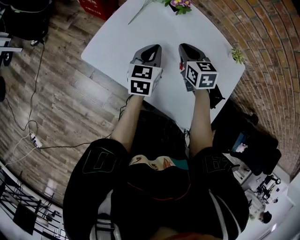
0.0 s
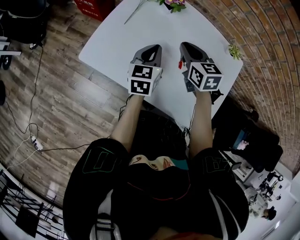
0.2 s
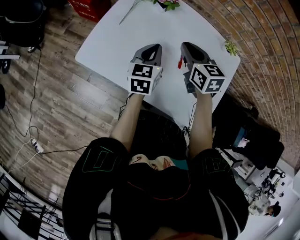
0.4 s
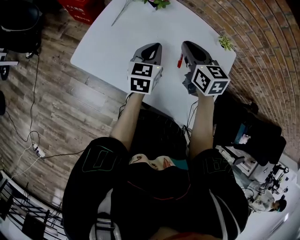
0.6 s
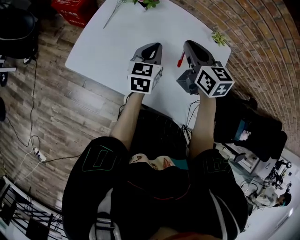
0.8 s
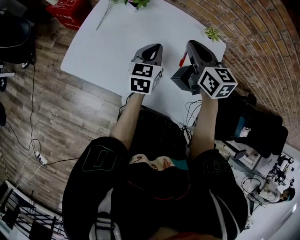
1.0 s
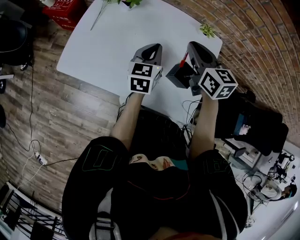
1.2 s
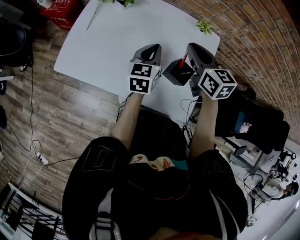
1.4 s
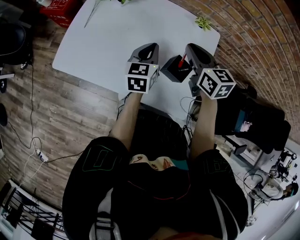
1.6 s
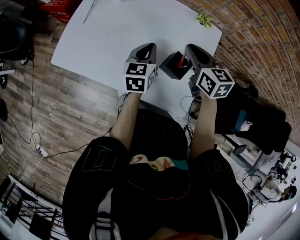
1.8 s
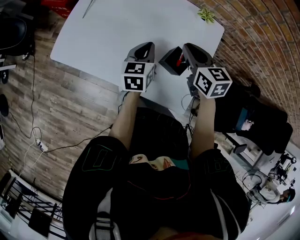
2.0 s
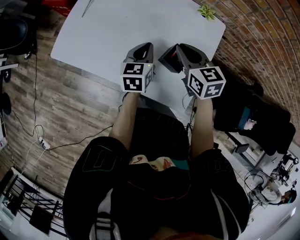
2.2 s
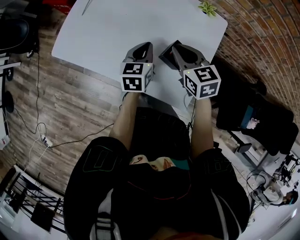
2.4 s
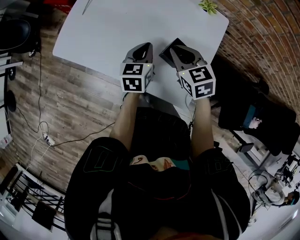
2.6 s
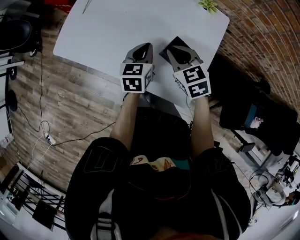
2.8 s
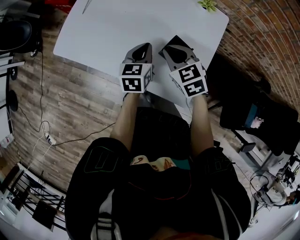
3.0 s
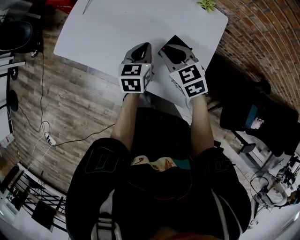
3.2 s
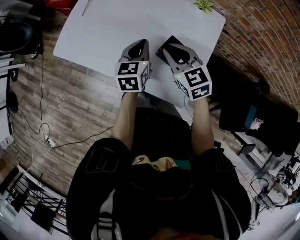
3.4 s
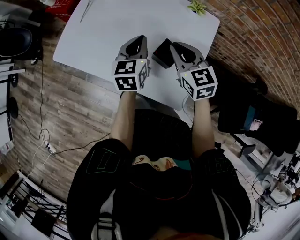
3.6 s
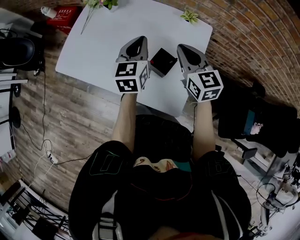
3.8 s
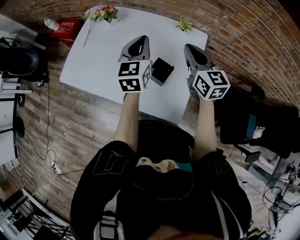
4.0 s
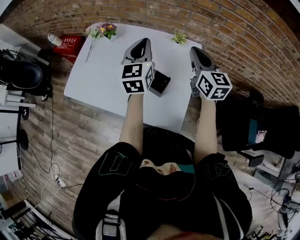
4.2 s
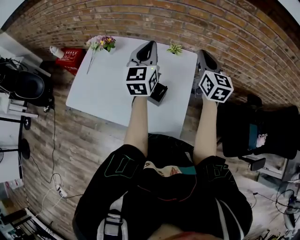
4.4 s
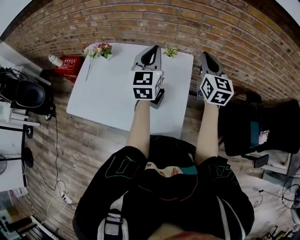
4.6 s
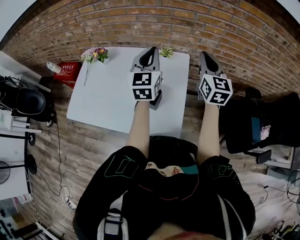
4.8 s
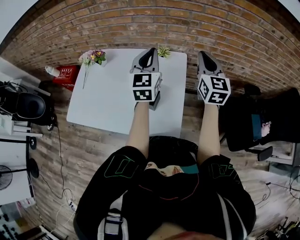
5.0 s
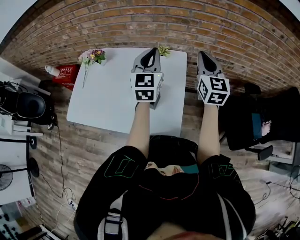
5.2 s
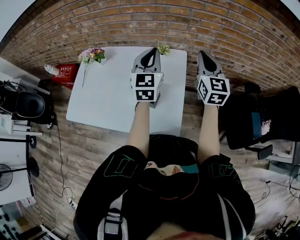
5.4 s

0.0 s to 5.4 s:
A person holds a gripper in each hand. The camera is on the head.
0.0 to 1.4 s: The left gripper heads to the right, covering roughly 20 cm. The right gripper moves to the right, upward and backward, about 25 cm.
1.4 to 2.8 s: The left gripper is displaced backward and downward by approximately 10 cm. The right gripper moves downward and backward, about 15 cm, and rotates approximately 30 degrees.
2.8 to 4.0 s: The left gripper moves upward, about 15 cm, and turns by about 20 degrees. The right gripper travels upward and to the right by approximately 20 cm, and tilts its fingers roughly 30 degrees upward.
4.0 to 5.4 s: Both grippers move to the right and upward, roughly 15 cm. The right gripper rotates some 30 degrees; the left gripper turns by some 20 degrees.

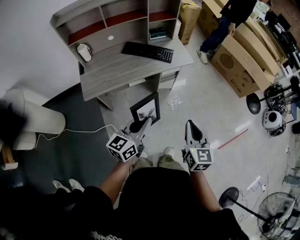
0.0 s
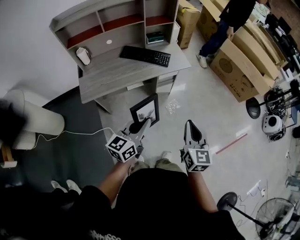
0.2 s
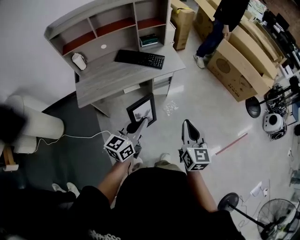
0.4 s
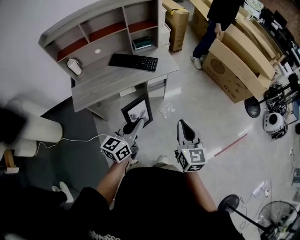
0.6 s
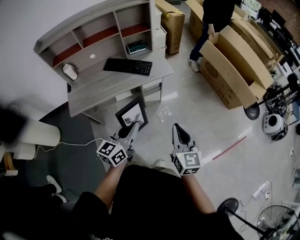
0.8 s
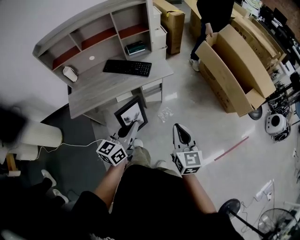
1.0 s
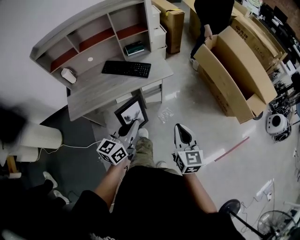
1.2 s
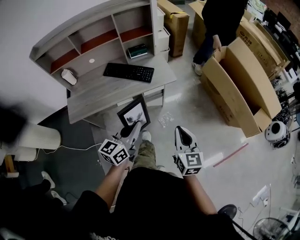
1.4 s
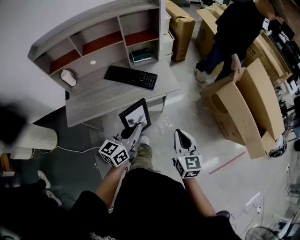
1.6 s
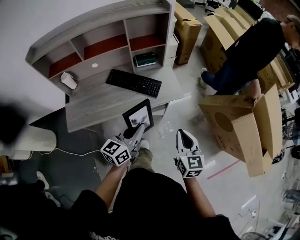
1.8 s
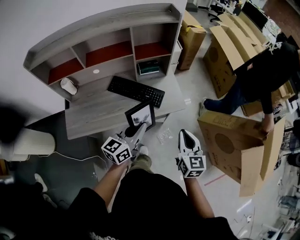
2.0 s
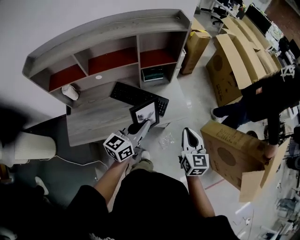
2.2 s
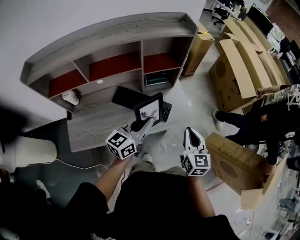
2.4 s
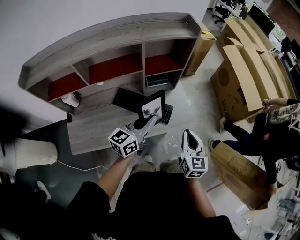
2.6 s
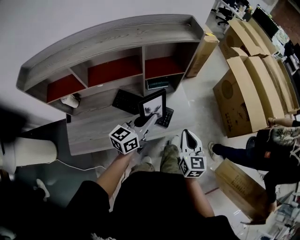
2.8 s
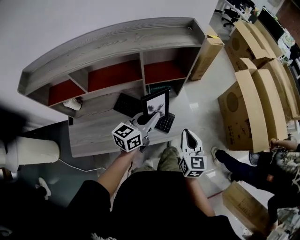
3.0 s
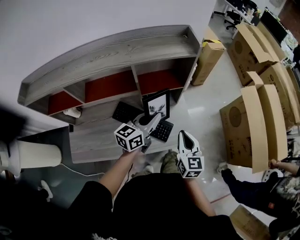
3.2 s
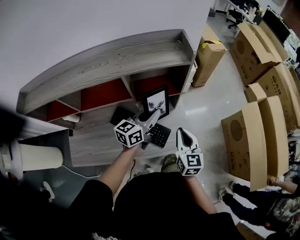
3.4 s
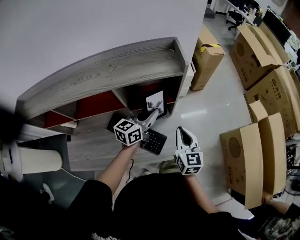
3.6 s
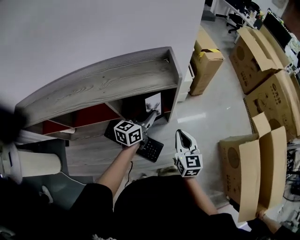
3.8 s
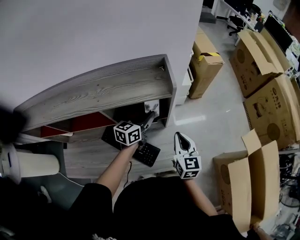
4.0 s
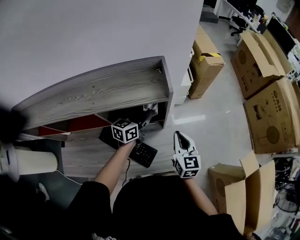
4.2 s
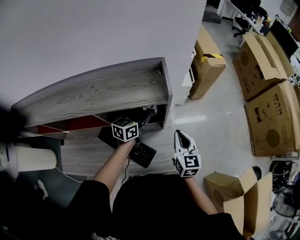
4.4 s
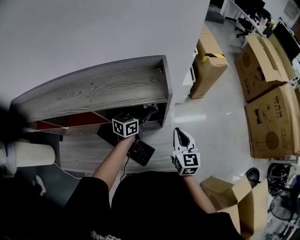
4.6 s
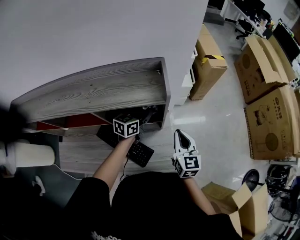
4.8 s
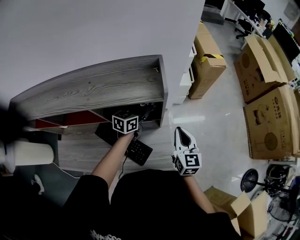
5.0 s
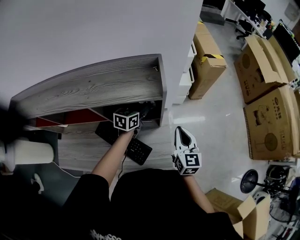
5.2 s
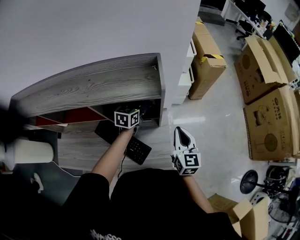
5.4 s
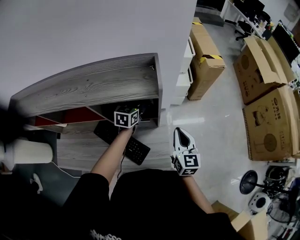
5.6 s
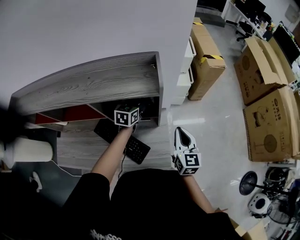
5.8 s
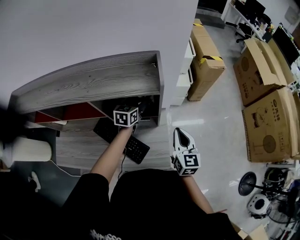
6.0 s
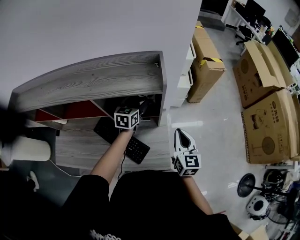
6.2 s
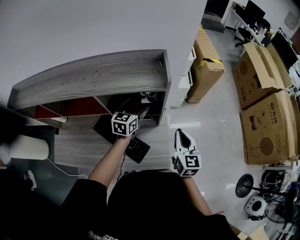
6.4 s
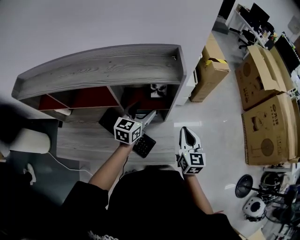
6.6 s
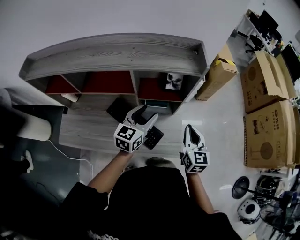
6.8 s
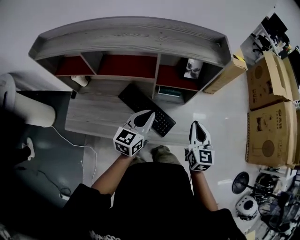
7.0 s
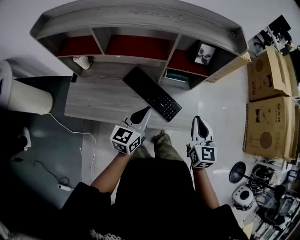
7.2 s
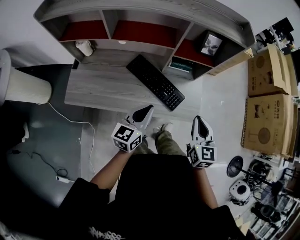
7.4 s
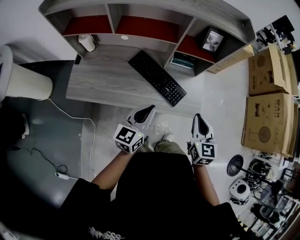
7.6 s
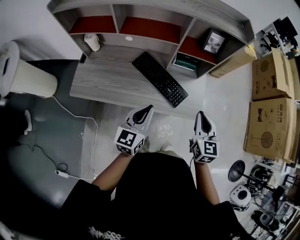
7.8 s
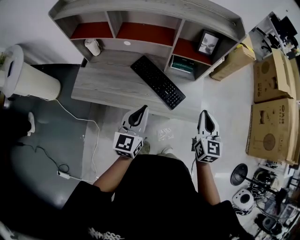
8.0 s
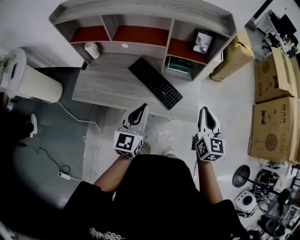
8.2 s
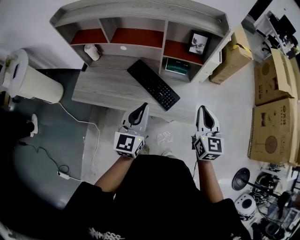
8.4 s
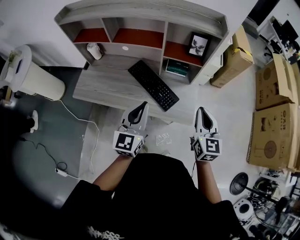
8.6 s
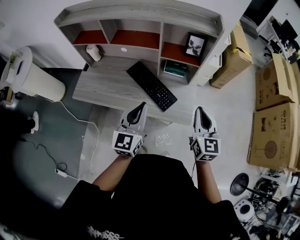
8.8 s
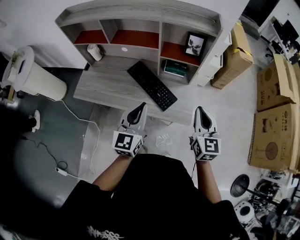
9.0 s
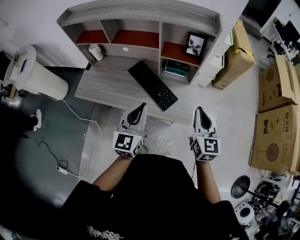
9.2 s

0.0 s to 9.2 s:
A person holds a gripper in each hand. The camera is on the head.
0.0 to 1.6 s: The two grippers go approximately 25 cm forward and to the right.
1.6 to 3.0 s: The left gripper travels forward by roughly 35 cm, while the right gripper travels forward and to the left by some 35 cm.
3.0 to 4.6 s: Both grippers travel together forward, some 30 cm.
4.6 to 6.2 s: The left gripper swivels roughly 20 degrees, and opens.
6.2 to 7.6 s: The right gripper is displaced backward and to the left by about 30 cm; the left gripper goes some 40 cm backward, and closes its fingers.
7.6 to 9.2 s: Both grippers travel together to the right and upward, roughly 15 cm. The left gripper rotates about 30 degrees.

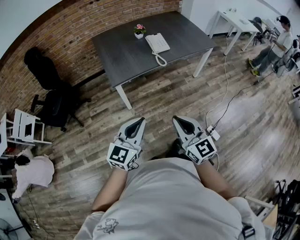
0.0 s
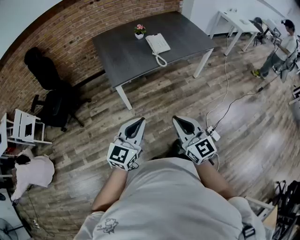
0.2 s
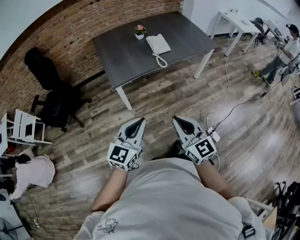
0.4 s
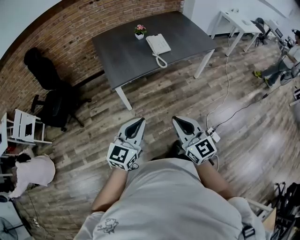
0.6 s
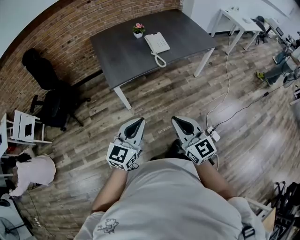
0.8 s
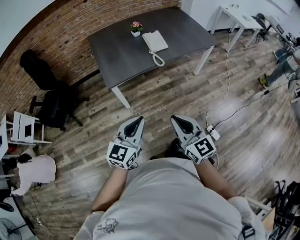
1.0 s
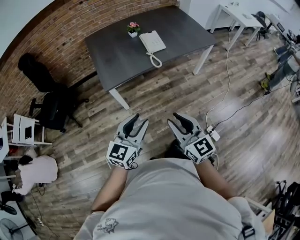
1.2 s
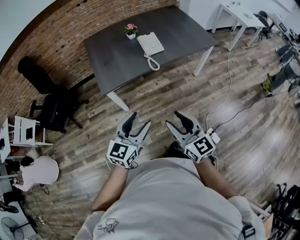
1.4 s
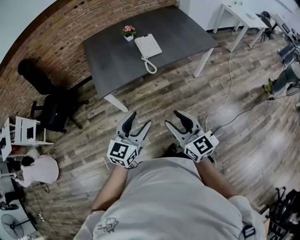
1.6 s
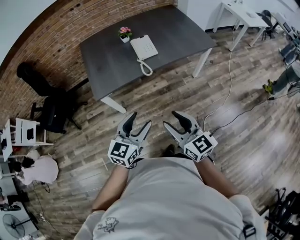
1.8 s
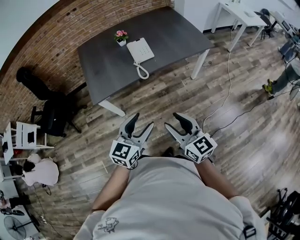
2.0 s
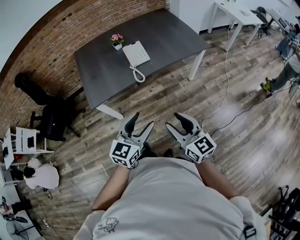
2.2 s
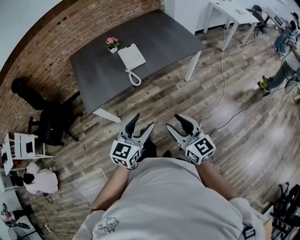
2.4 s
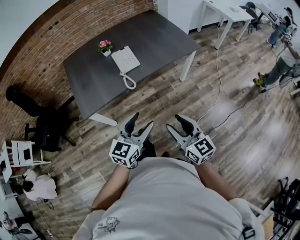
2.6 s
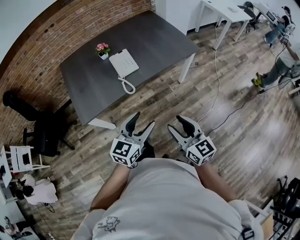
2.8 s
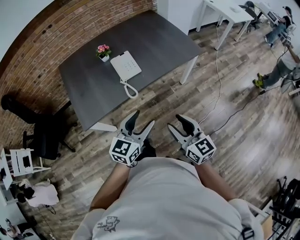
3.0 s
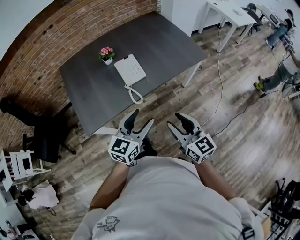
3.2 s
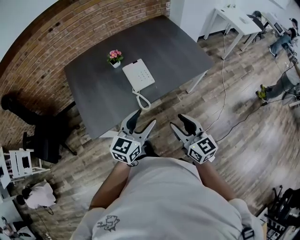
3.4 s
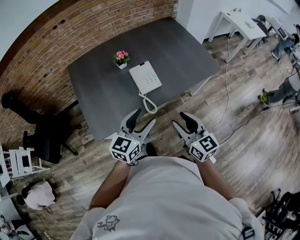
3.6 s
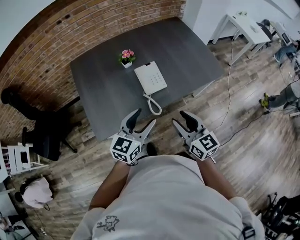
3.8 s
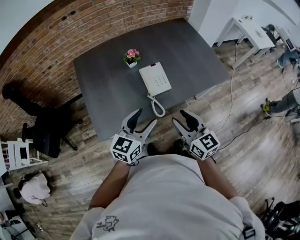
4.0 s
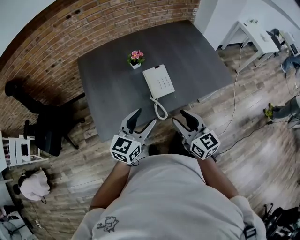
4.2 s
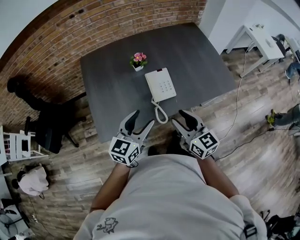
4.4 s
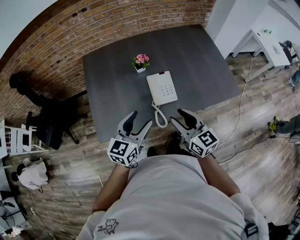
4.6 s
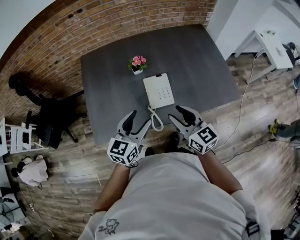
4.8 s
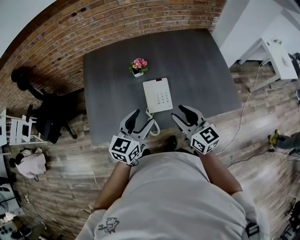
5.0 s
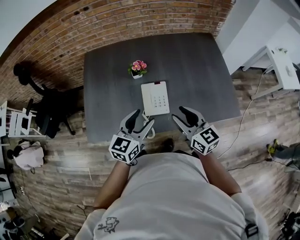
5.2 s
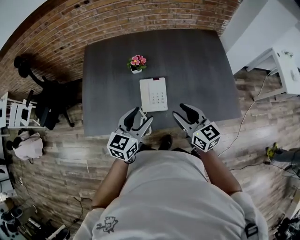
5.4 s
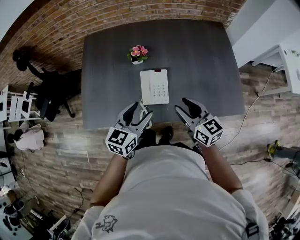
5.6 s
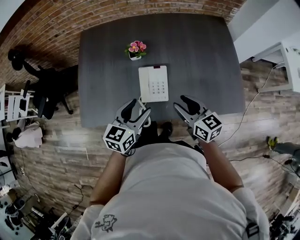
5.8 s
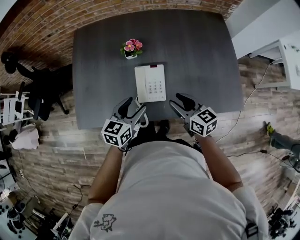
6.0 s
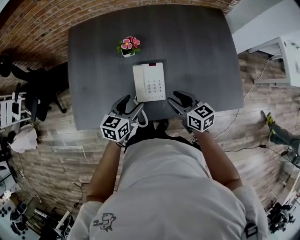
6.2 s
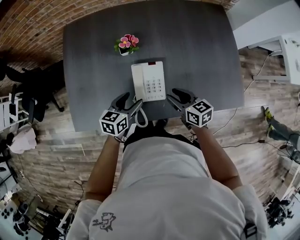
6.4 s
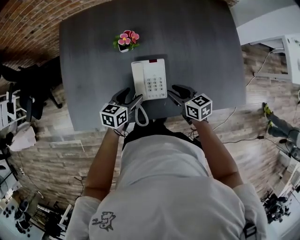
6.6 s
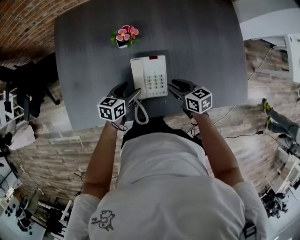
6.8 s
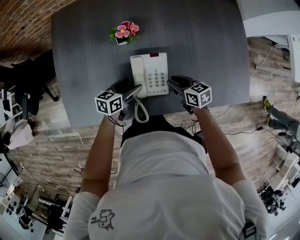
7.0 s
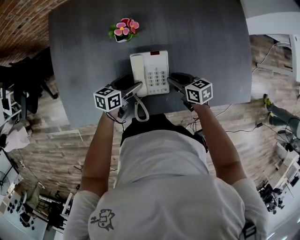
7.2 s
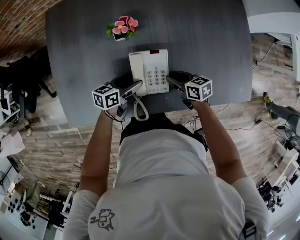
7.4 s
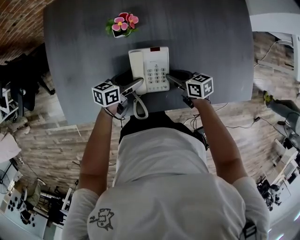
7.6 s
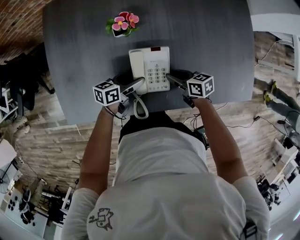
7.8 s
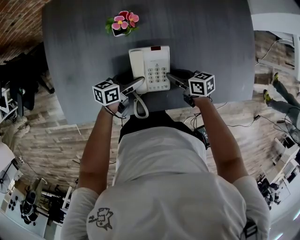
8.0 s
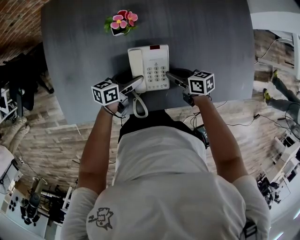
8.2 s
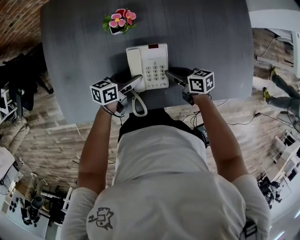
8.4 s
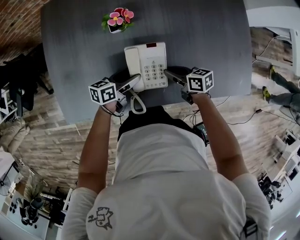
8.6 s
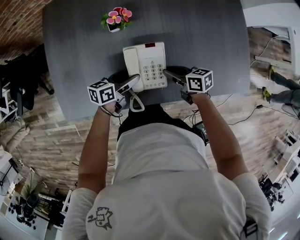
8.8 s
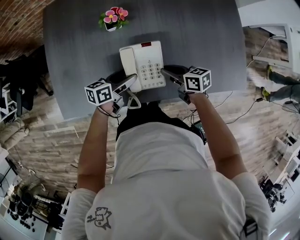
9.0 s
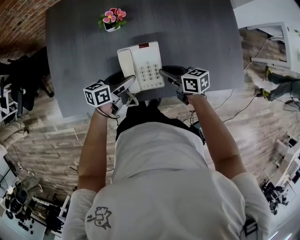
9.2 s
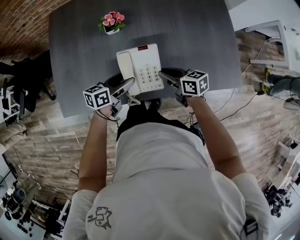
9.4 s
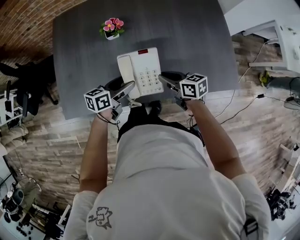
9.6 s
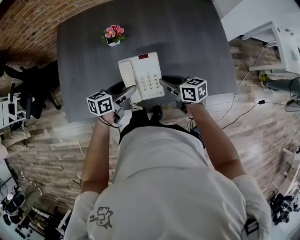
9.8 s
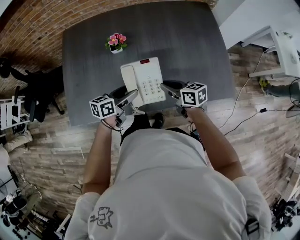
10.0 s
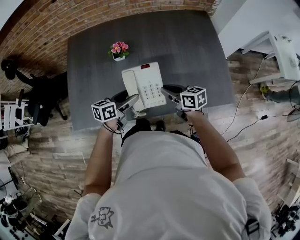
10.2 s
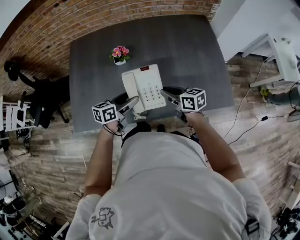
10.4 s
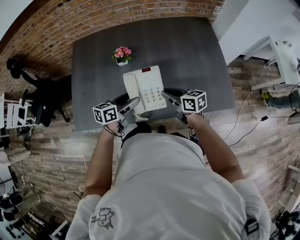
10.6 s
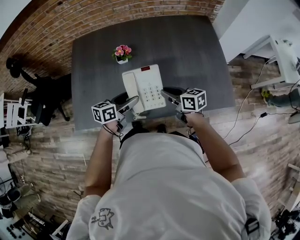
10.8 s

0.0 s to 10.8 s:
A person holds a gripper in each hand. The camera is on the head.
0.0 to 1.6 s: Both grippers travel together forward and to the right, some 20 cm. The left gripper opens its fingers, while the right gripper opens up.
1.6 to 3.0 s: Both grippers move forward and to the right, roughly 20 cm.
3.0 to 4.6 s: The two grippers go about 30 cm forward and to the left.
4.6 to 6.2 s: Both grippers travel together downward, forward and to the right, approximately 25 cm. The left gripper swivels approximately 20 degrees; the right gripper swivels some 30 degrees.
6.2 to 7.8 s: The grippers both shift downward by some 15 cm. The left gripper changes its angle by approximately 30 degrees. Meanwhile the right gripper turns by some 30 degrees.
7.8 to 9.2 s: Both grippers travel together upward, roughly 10 cm.
9.2 to 10.8 s: Both grippers travel together upward, roughly 10 cm.
